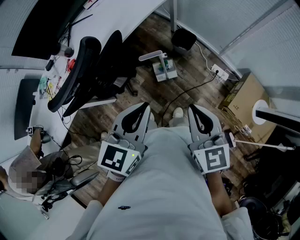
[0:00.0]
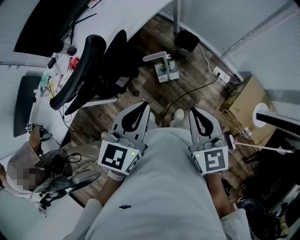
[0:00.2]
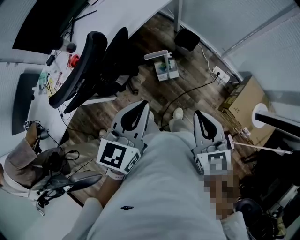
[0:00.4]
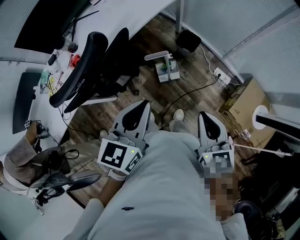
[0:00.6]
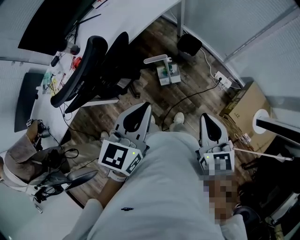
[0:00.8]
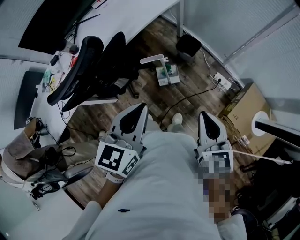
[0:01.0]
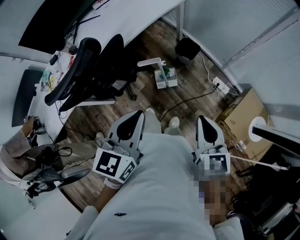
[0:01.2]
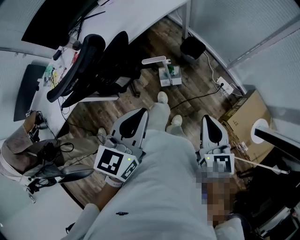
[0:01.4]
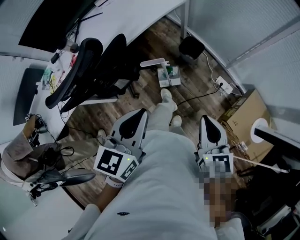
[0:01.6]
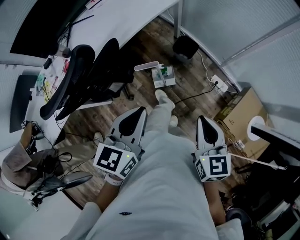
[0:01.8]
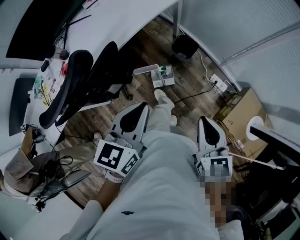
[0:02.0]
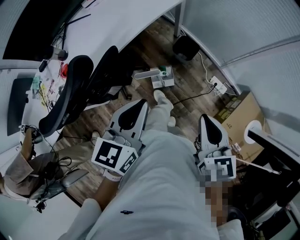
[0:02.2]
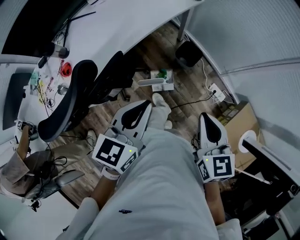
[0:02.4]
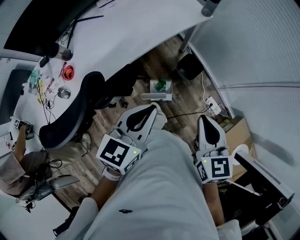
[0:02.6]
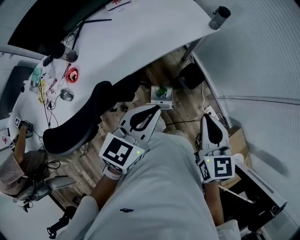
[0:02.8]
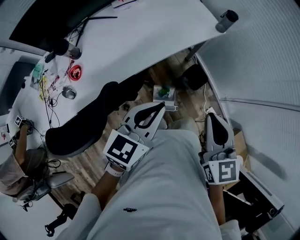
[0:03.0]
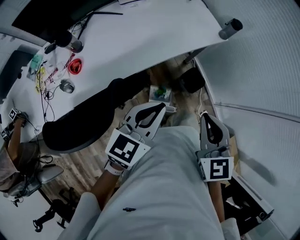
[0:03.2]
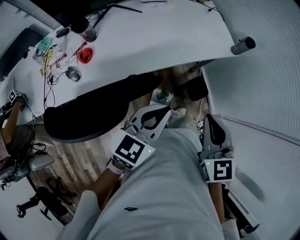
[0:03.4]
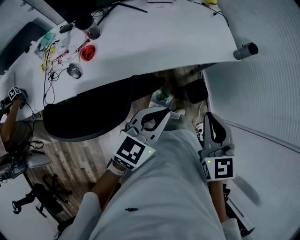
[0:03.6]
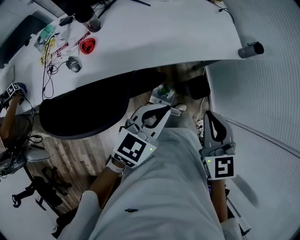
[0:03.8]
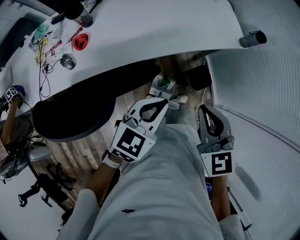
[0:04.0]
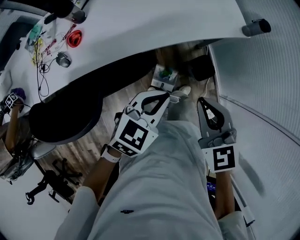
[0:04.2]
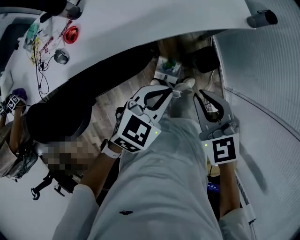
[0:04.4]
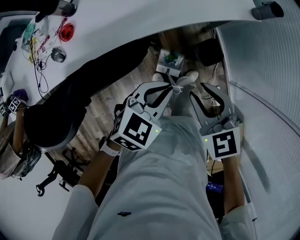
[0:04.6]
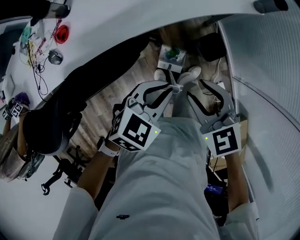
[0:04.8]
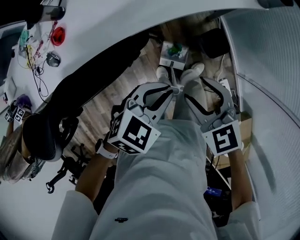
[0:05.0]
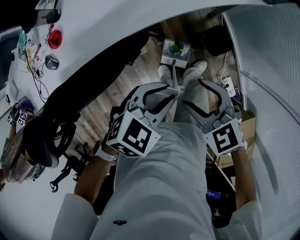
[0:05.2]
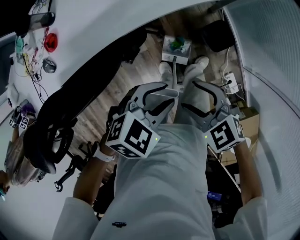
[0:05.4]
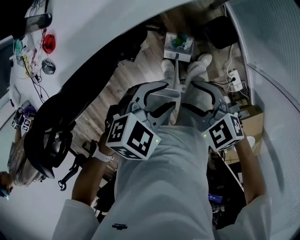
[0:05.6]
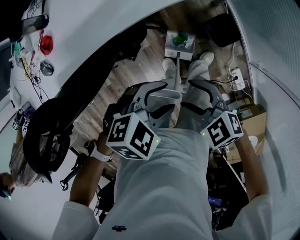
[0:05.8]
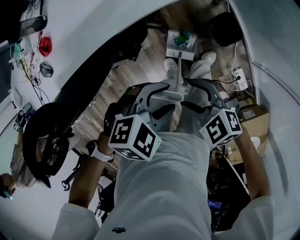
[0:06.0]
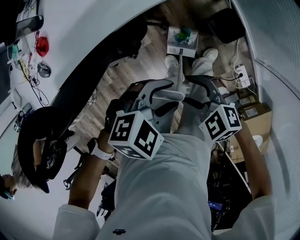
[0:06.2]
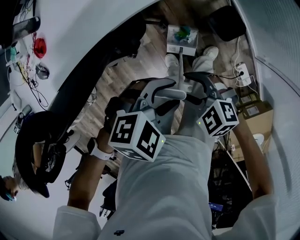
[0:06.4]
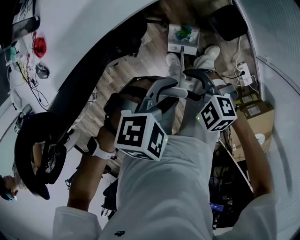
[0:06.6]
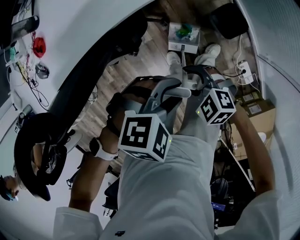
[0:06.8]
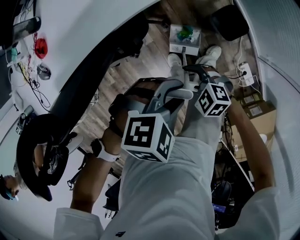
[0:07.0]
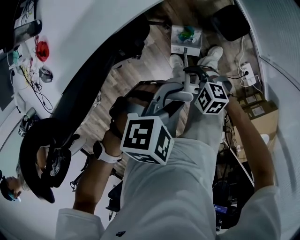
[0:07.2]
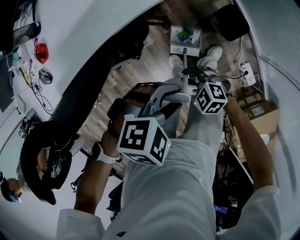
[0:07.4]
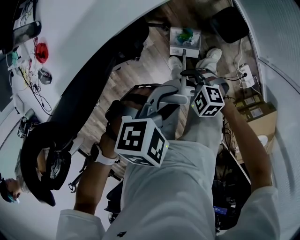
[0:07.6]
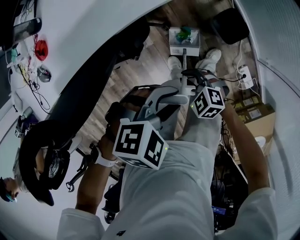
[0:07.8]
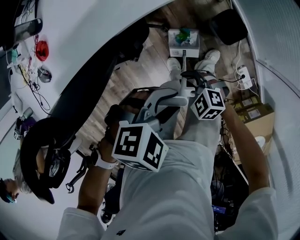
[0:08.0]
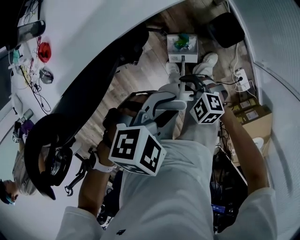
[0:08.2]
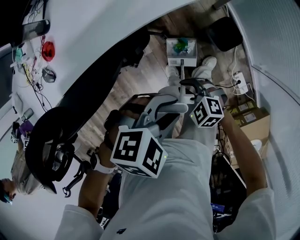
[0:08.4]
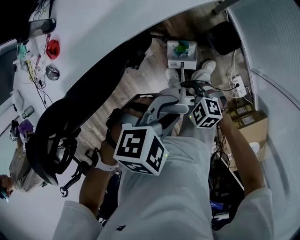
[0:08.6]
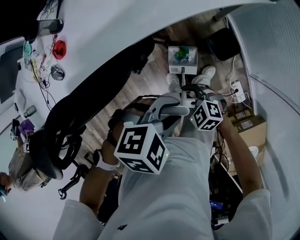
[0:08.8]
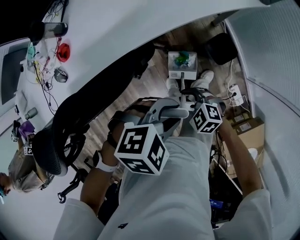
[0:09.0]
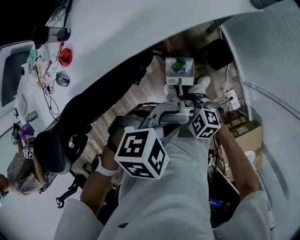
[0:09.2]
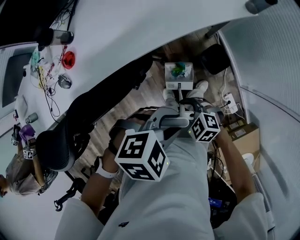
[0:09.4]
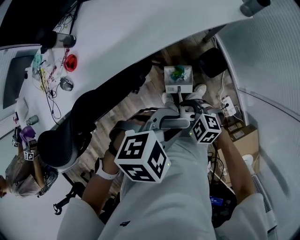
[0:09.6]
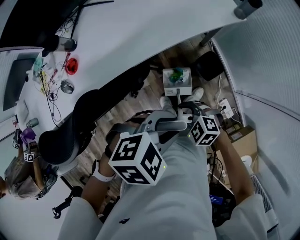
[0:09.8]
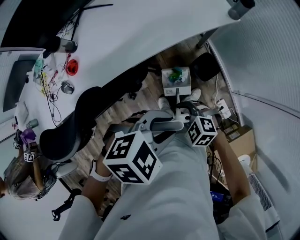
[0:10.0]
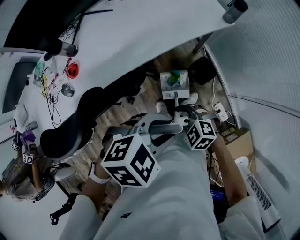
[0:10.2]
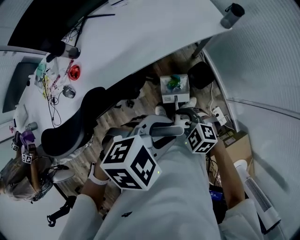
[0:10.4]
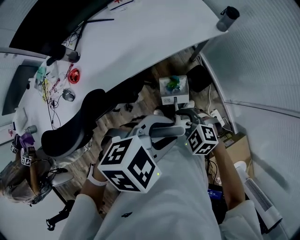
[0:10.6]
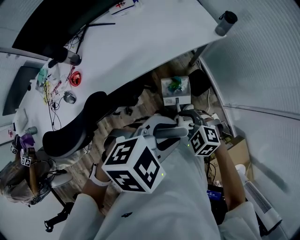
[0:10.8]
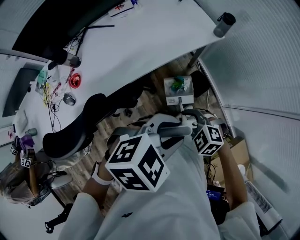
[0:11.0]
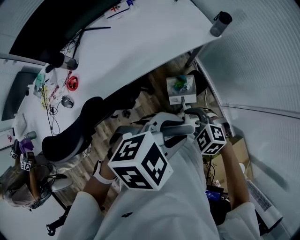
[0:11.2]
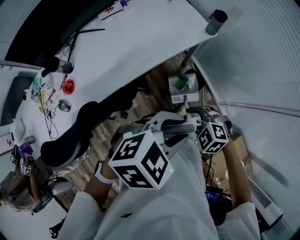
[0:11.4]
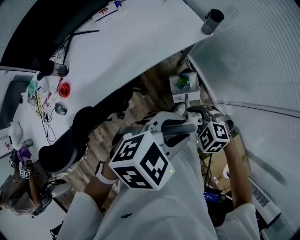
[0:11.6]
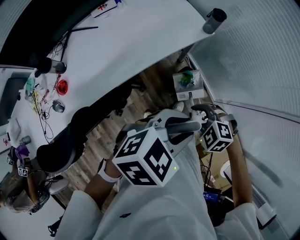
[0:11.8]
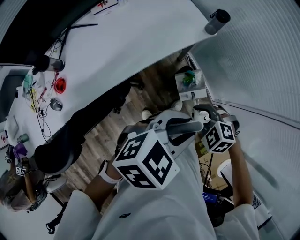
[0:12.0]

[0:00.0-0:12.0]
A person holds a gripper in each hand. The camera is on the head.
0:00.0 to 0:01.6: The right gripper goes approximately 10 cm to the right and downward.
0:01.6 to 0:03.0: The left gripper heads forward, covering approximately 25 cm. Meanwhile the right gripper goes some 30 cm forward and to the left, and turns by approximately 20 degrees.
0:03.0 to 0:04.4: The left gripper shifts some 10 cm downward; the right gripper travels downward and to the left by some 10 cm, and changes its angle by approximately 30 degrees.
0:04.4 to 0:06.0: The left gripper is displaced downward by about 15 cm, swivels about 40 degrees, and opens up, while the right gripper is displaced downward by approximately 25 cm, rotates roughly 30 degrees, and opens.
0:06.0 to 0:07.6: The right gripper moves downward, about 15 cm, and closes up.
0:07.6 to 0:09.0: The two grippers go some 10 cm upward.
0:09.0 to 0:10.4: Both grippers travel together upward, some 15 cm.
0:10.4 to 0:12.0: The right gripper shifts by some 15 cm, while the left gripper changes place by about 10 cm.

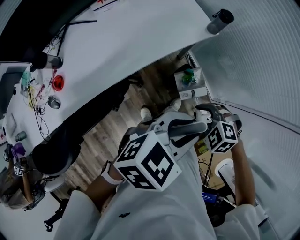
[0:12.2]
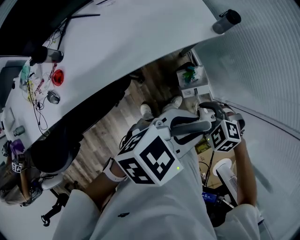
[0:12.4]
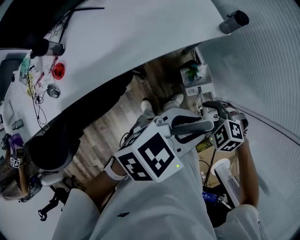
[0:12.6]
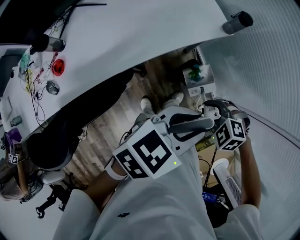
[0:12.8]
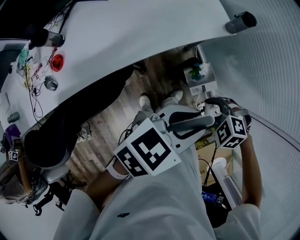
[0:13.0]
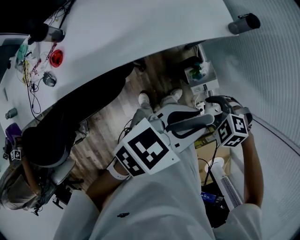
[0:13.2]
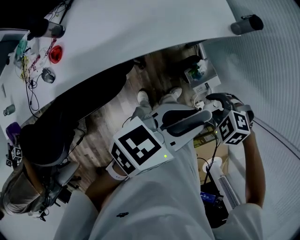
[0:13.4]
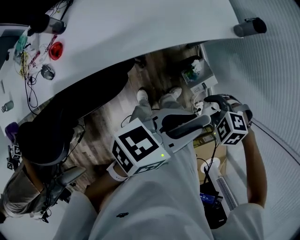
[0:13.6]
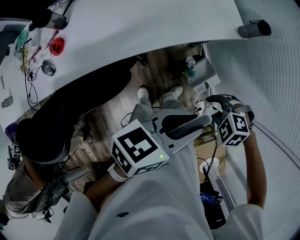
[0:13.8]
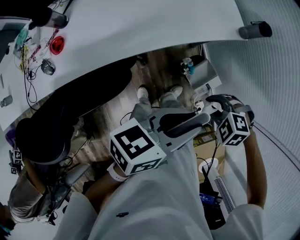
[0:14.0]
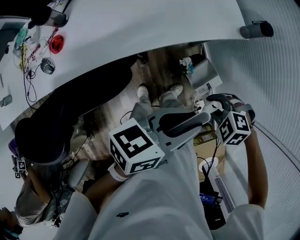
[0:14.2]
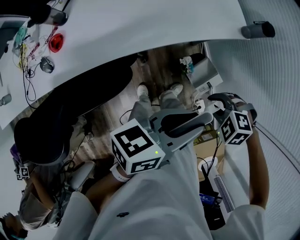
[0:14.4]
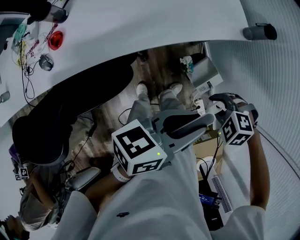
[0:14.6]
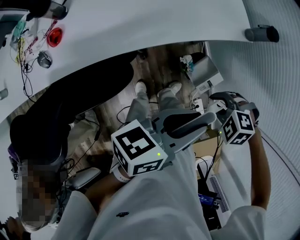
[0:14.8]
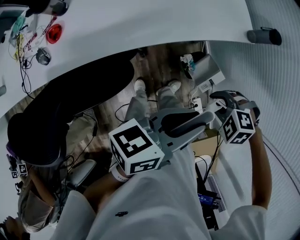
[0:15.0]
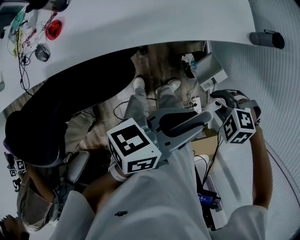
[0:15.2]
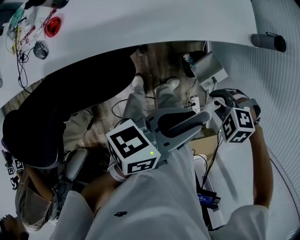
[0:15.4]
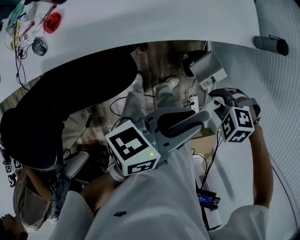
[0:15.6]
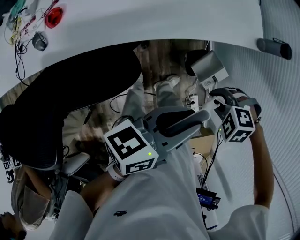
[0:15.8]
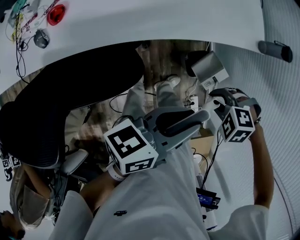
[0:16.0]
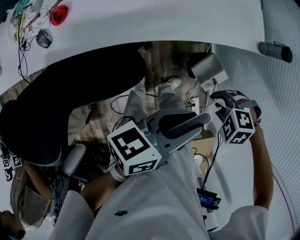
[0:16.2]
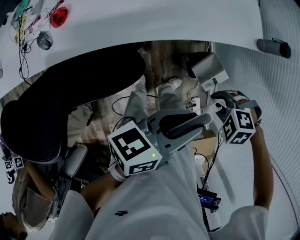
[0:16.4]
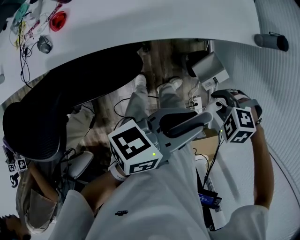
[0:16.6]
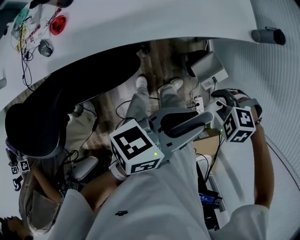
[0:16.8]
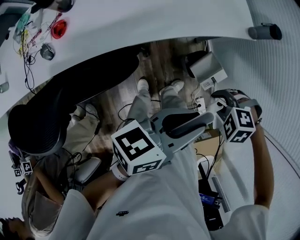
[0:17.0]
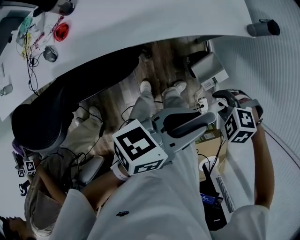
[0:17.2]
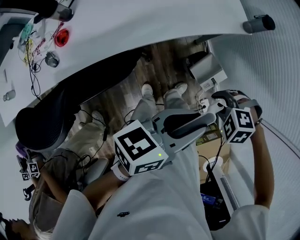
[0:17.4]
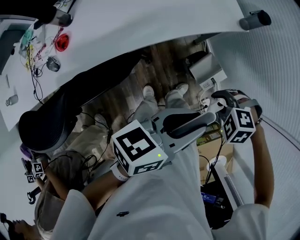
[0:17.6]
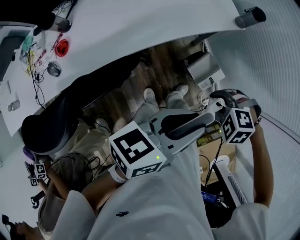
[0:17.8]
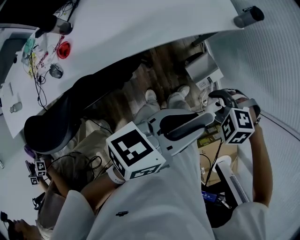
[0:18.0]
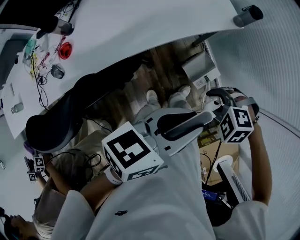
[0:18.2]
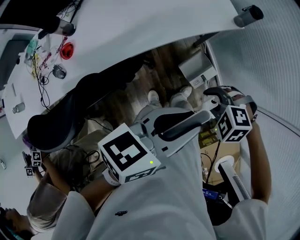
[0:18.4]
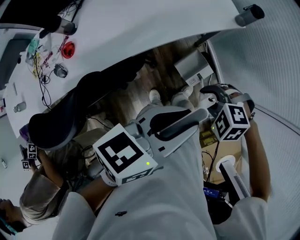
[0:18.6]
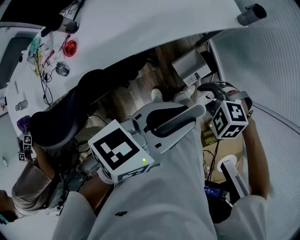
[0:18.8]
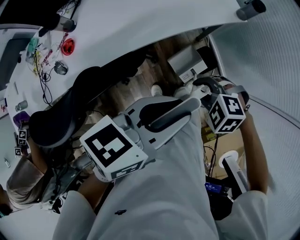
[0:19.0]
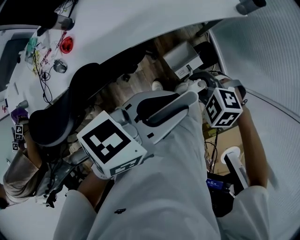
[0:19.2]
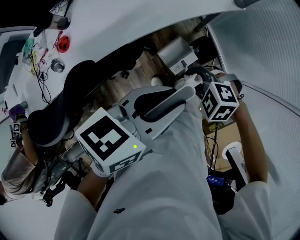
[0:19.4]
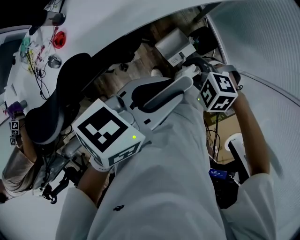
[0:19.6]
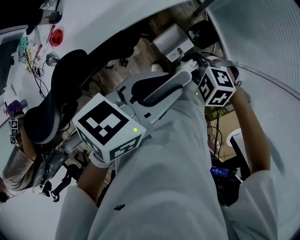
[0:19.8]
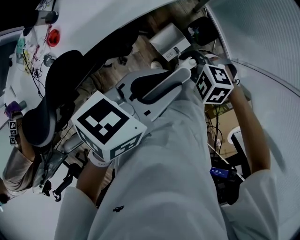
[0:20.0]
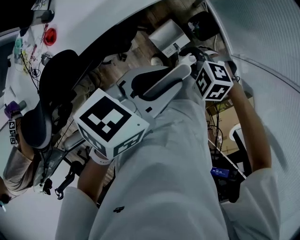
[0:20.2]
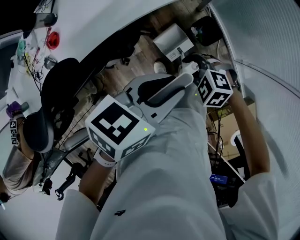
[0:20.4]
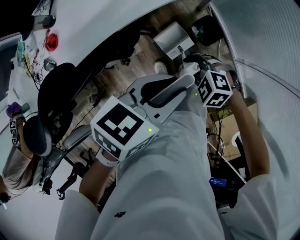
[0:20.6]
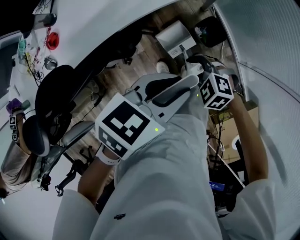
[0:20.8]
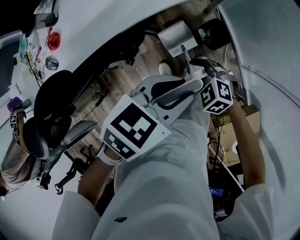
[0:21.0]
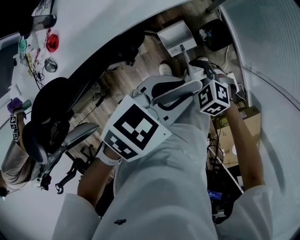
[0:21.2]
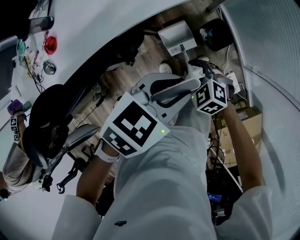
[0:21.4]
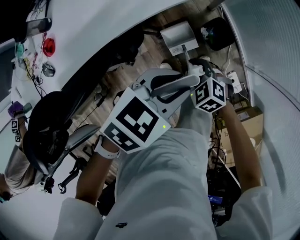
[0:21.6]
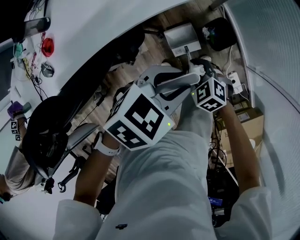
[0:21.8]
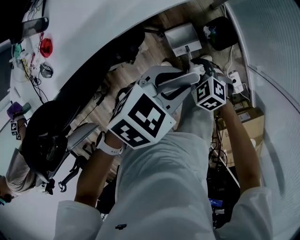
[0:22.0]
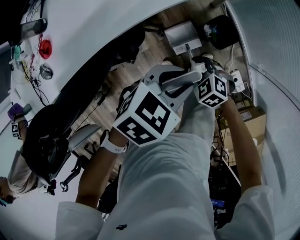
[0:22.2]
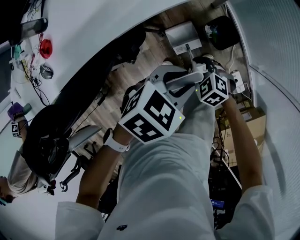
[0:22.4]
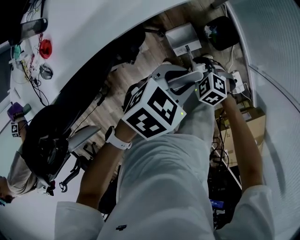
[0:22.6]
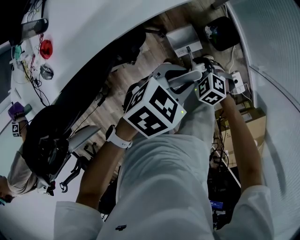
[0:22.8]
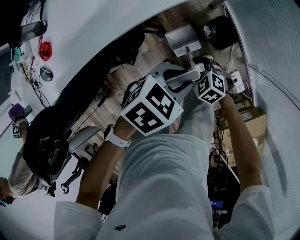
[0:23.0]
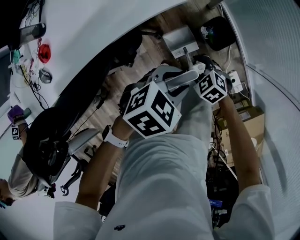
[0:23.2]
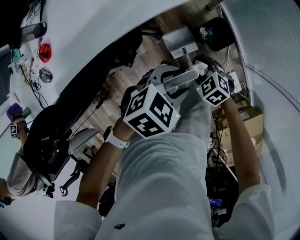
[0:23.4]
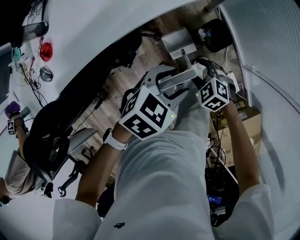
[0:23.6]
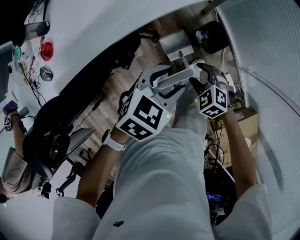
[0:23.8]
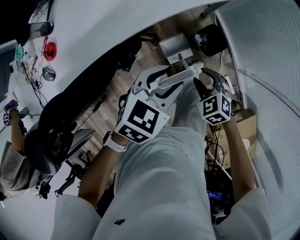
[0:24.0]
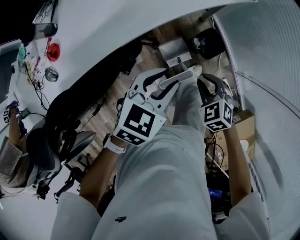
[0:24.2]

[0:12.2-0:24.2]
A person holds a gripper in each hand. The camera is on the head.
0:12.2 to 0:13.8: The left gripper changes place by approximately 5 cm, and turns by approximately 40 degrees.
0:13.8 to 0:15.2: The left gripper turns by some 20 degrees.
0:15.2 to 0:16.6: The grippers move only a little.
0:16.6 to 0:18.2: The left gripper heads upward, covering about 5 cm, and rotates roughly 20 degrees; the right gripper ends up about 5 cm from where it was.
0:18.2 to 0:19.8: The right gripper shifts by some 10 cm, while the left gripper changes place by about 5 cm.
0:19.8 to 0:21.2: The grippers both shift downward by roughly 10 cm.
0:21.2 to 0:22.6: Both grippers move downward, some 10 cm.
0:22.6 to 0:24.2: The right gripper travels upward by about 15 cm, and opens and closes again; the left gripper shifts roughly 10 cm upward, swivels some 20 degrees, and opens, then closes again.
